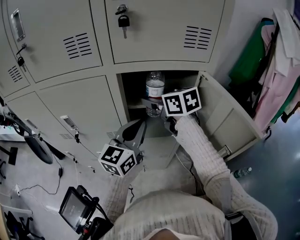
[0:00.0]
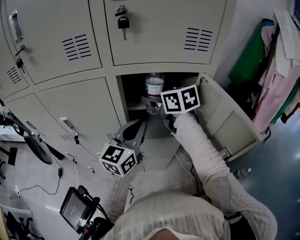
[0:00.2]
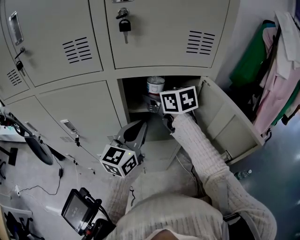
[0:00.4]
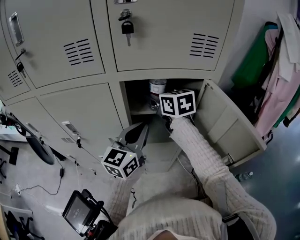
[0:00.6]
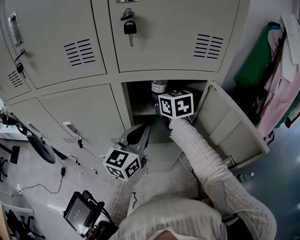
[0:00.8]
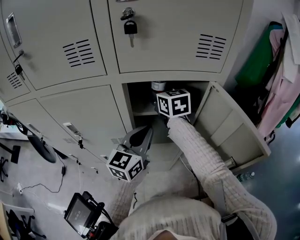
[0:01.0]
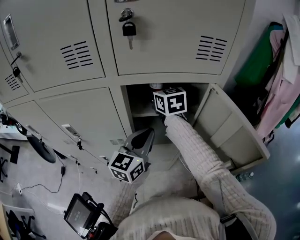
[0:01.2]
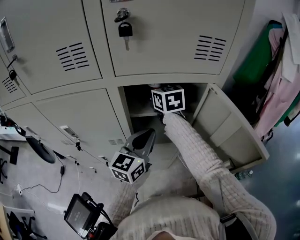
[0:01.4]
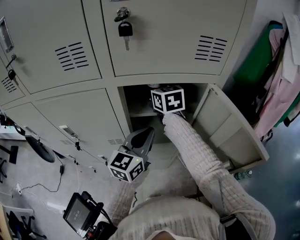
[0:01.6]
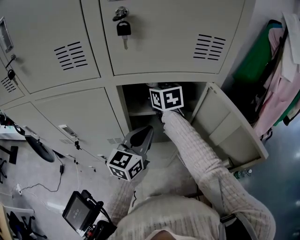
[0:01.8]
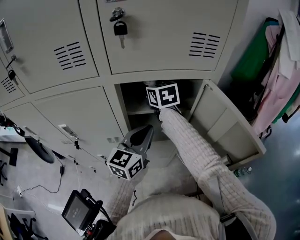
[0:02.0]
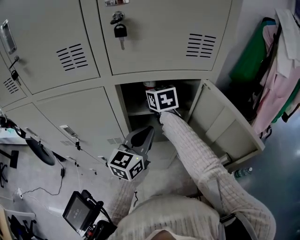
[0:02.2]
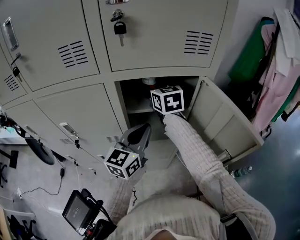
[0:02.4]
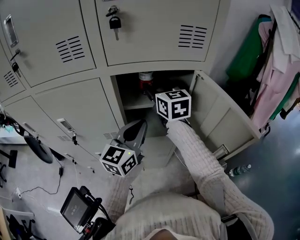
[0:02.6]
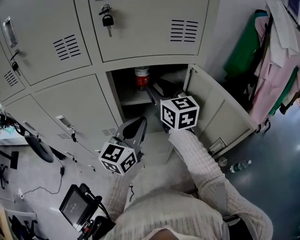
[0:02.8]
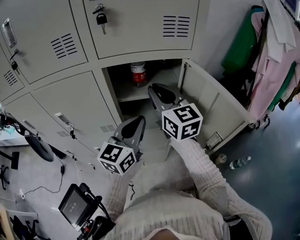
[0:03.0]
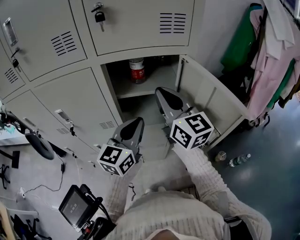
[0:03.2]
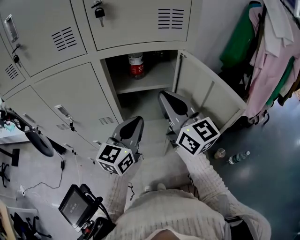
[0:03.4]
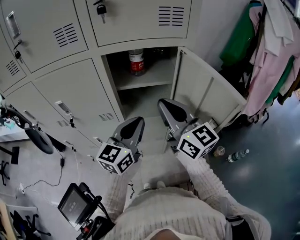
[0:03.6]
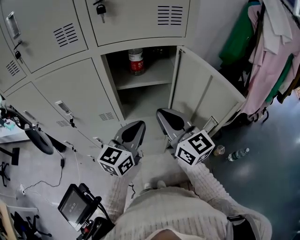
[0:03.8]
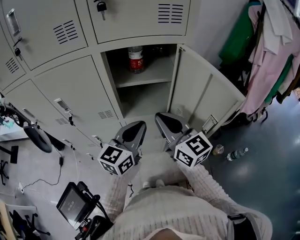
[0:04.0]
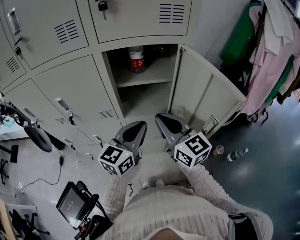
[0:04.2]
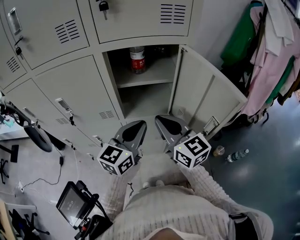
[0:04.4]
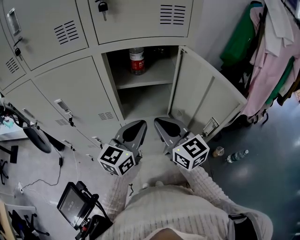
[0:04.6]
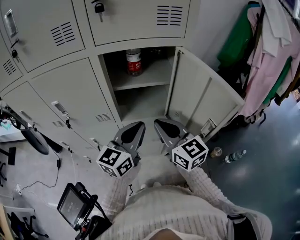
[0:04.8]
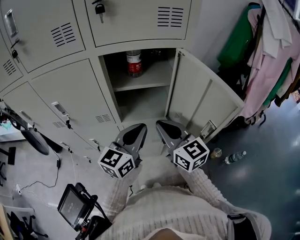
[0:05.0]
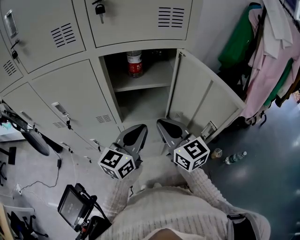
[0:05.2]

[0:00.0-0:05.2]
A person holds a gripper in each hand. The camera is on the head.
0:00.0 to 0:01.8: The right gripper moves forward, roughly 10 cm.
0:01.8 to 0:03.4: The left gripper travels backward by about 10 cm. Meanwhile the right gripper shifts some 30 cm backward and to the right, swivels roughly 30 degrees, and closes its fingers.
0:03.4 to 0:05.2: The right gripper is displaced downward by roughly 10 cm.

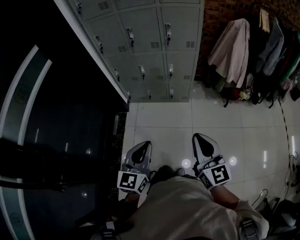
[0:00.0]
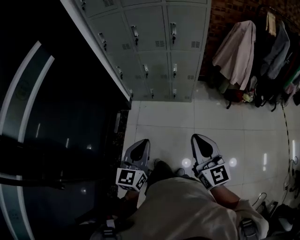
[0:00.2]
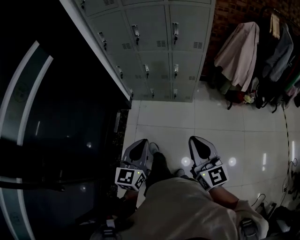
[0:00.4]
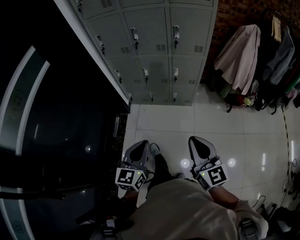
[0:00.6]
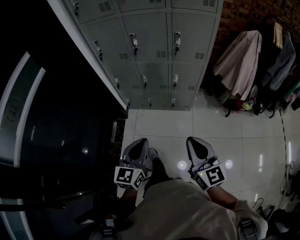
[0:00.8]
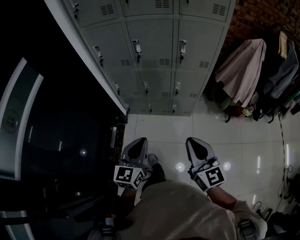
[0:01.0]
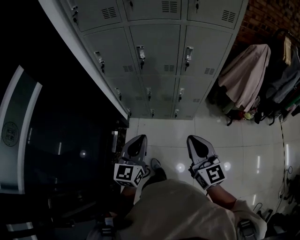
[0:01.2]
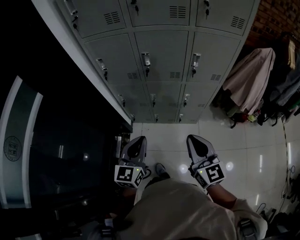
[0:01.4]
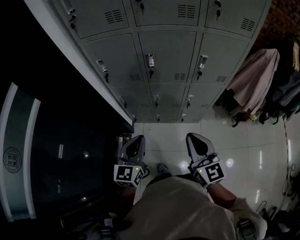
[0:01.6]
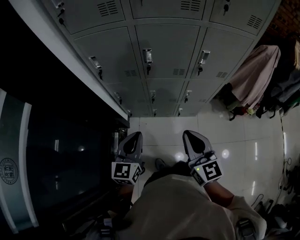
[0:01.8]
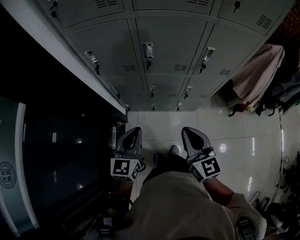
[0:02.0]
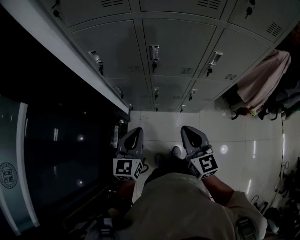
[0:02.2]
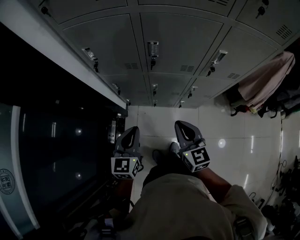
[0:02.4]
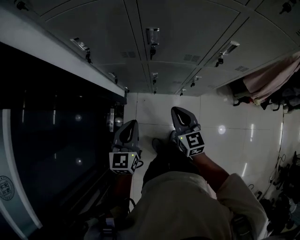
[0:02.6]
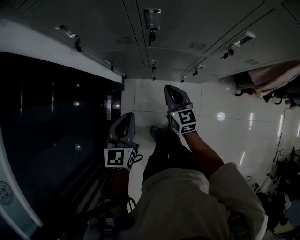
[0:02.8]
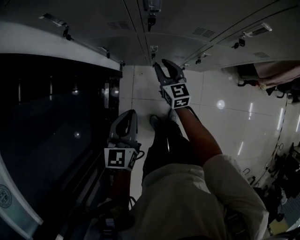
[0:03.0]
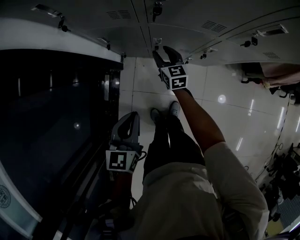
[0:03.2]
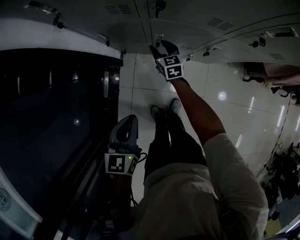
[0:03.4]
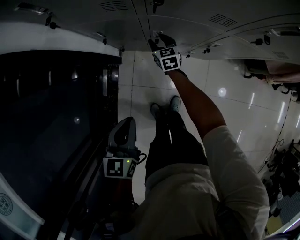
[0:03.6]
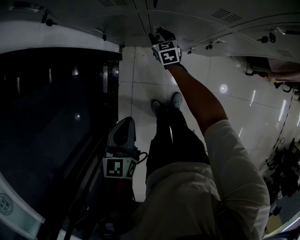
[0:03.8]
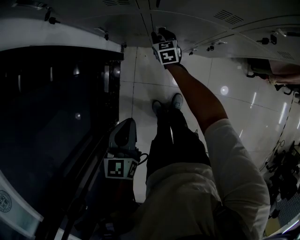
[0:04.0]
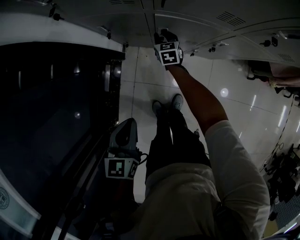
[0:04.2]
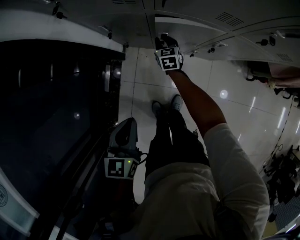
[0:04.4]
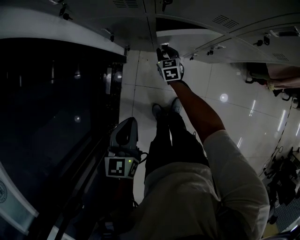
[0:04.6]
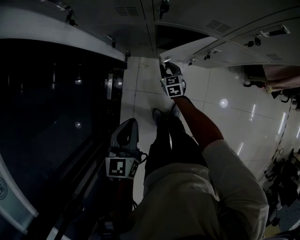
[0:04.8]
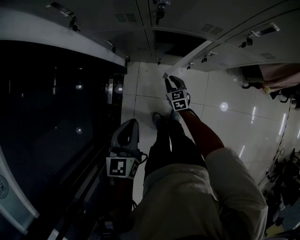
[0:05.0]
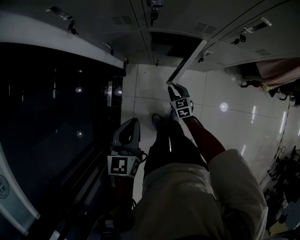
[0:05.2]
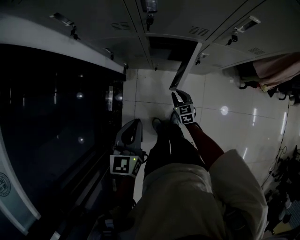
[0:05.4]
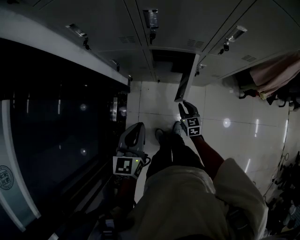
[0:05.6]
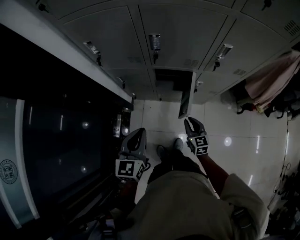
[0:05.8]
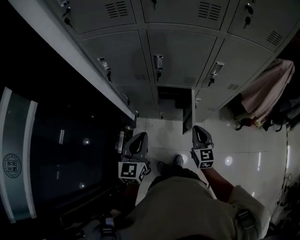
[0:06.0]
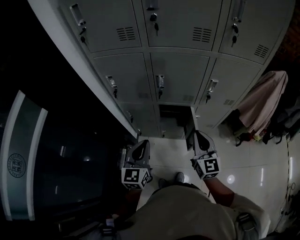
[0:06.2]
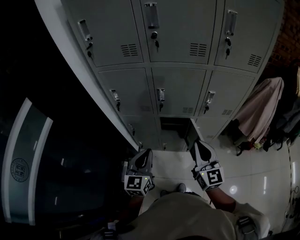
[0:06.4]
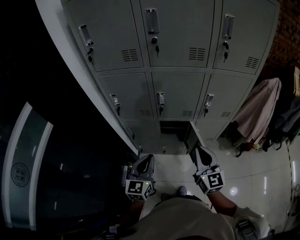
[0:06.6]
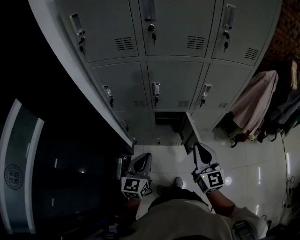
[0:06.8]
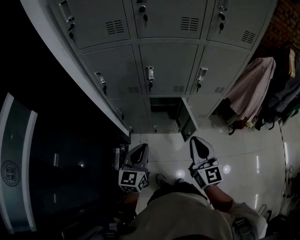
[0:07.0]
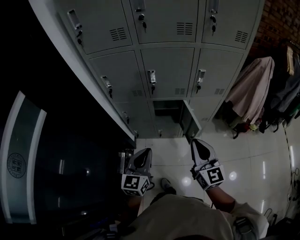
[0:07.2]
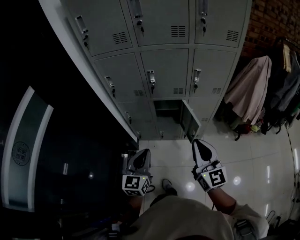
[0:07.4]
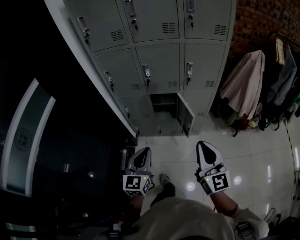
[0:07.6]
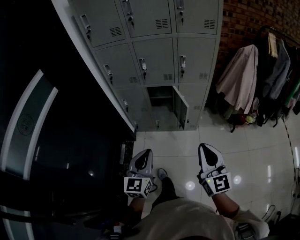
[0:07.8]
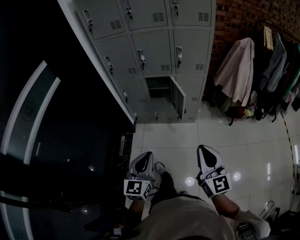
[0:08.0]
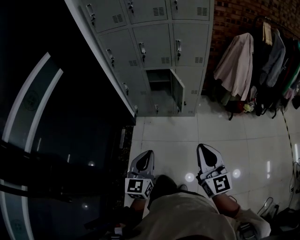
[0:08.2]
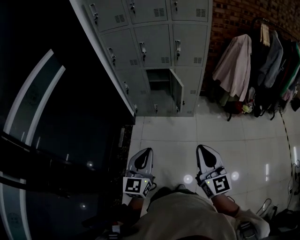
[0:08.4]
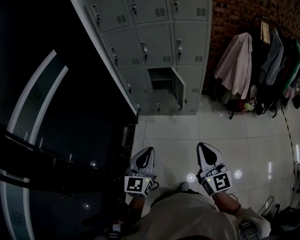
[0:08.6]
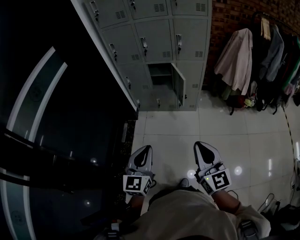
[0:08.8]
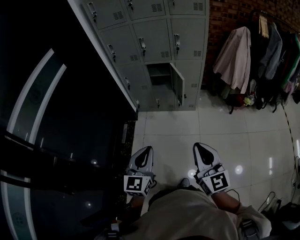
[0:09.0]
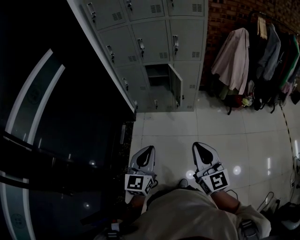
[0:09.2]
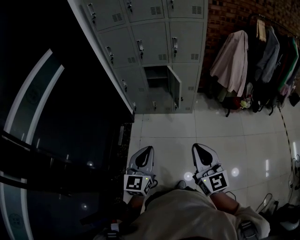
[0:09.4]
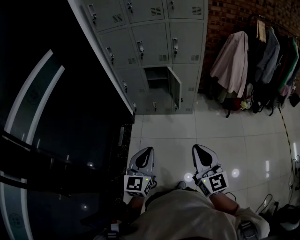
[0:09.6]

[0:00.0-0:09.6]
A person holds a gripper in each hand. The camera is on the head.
0:00.0 to 0:01.6: The two grippers travel together, forward and to the left, about 50 cm.
0:01.6 to 0:03.2: The right gripper is displaced downward and forward by approximately 70 cm, changes its angle by approximately 30 degrees, and opens up, while the left gripper goes some 35 cm downward, and changes its angle by some 30 degrees.
0:03.2 to 0:04.8: The right gripper shifts roughly 15 cm downward and backward, and closes.
0:04.8 to 0:06.4: The right gripper is displaced upward by about 70 cm, and points its fingers some 40 degrees further upward. The left gripper shifts some 30 cm upward, and rotates approximately 30 degrees.
0:06.4 to 0:08.0: The pair of grippers is taken backward, about 50 cm.
0:08.0 to 0:09.6: The two grippers go approximately 10 cm backward.

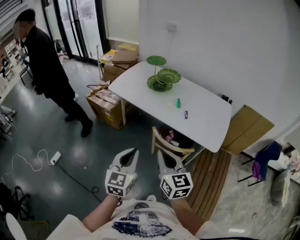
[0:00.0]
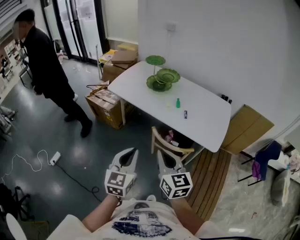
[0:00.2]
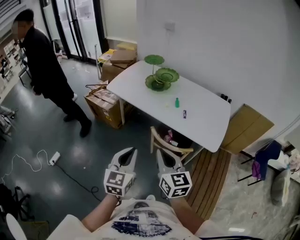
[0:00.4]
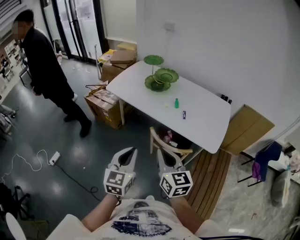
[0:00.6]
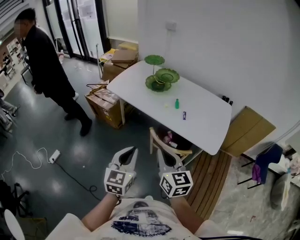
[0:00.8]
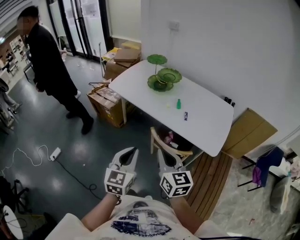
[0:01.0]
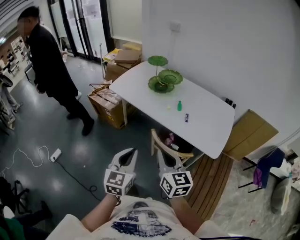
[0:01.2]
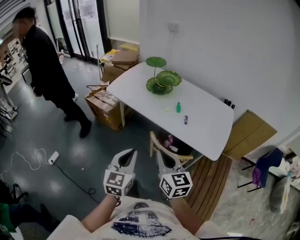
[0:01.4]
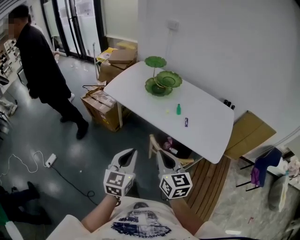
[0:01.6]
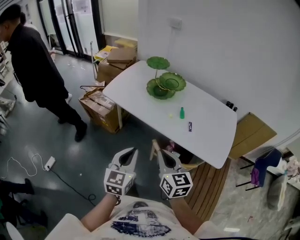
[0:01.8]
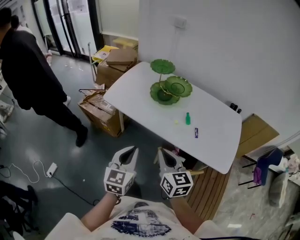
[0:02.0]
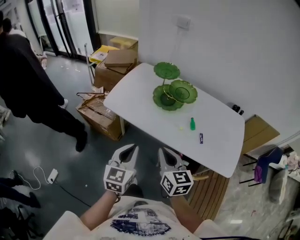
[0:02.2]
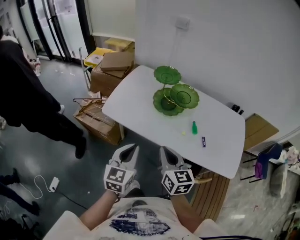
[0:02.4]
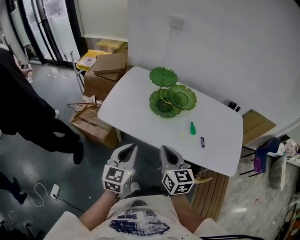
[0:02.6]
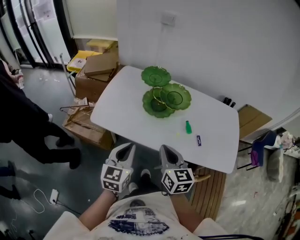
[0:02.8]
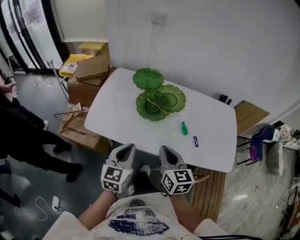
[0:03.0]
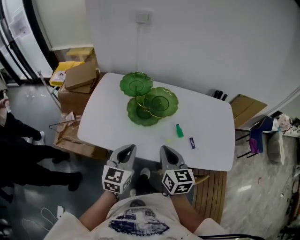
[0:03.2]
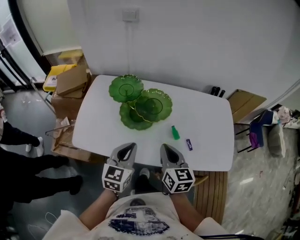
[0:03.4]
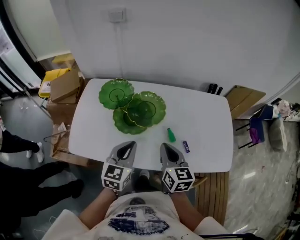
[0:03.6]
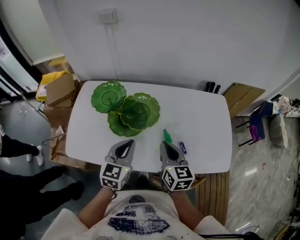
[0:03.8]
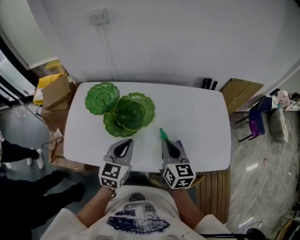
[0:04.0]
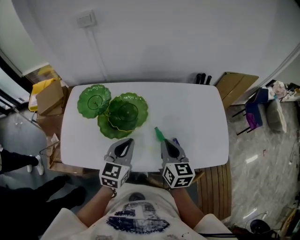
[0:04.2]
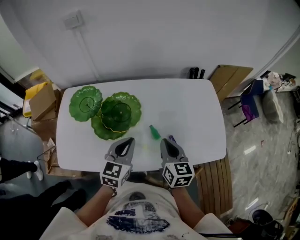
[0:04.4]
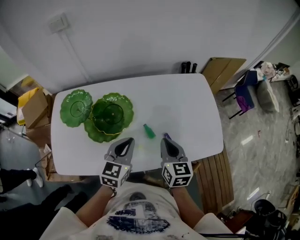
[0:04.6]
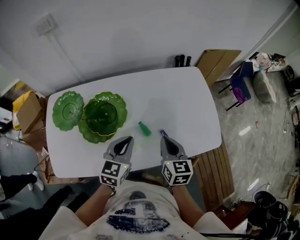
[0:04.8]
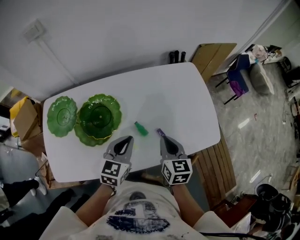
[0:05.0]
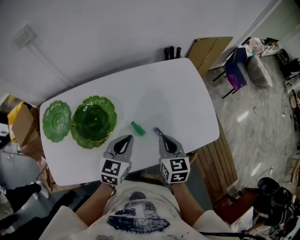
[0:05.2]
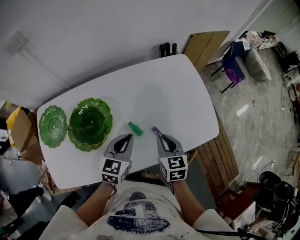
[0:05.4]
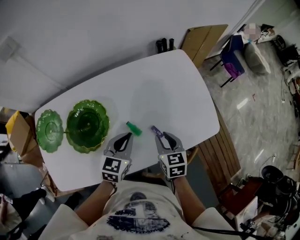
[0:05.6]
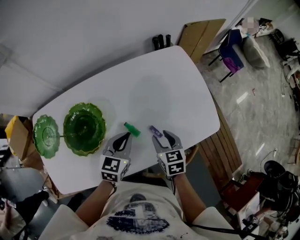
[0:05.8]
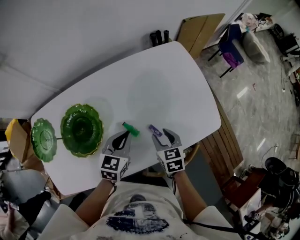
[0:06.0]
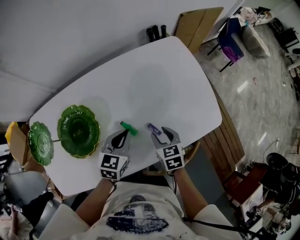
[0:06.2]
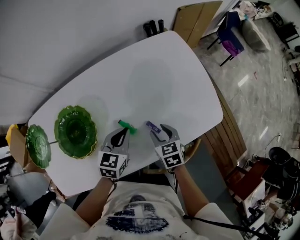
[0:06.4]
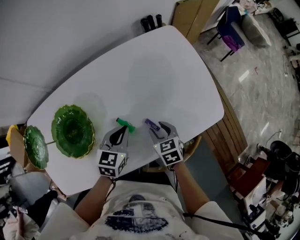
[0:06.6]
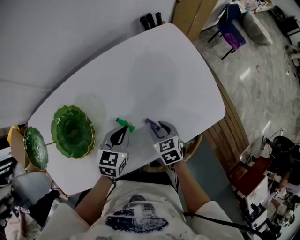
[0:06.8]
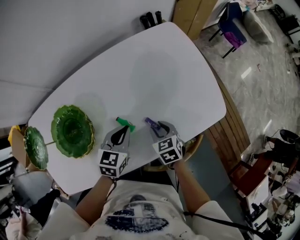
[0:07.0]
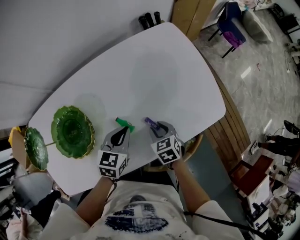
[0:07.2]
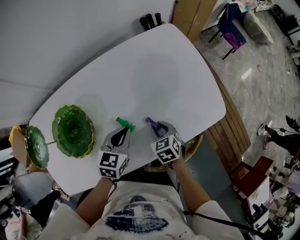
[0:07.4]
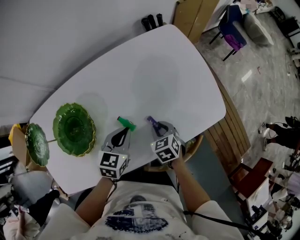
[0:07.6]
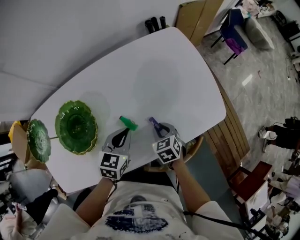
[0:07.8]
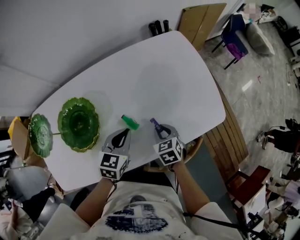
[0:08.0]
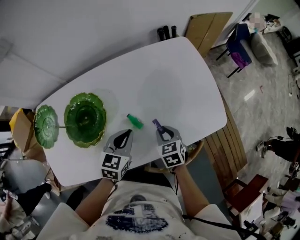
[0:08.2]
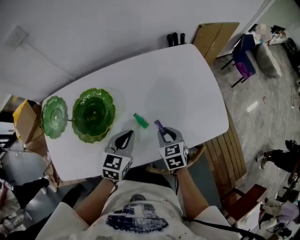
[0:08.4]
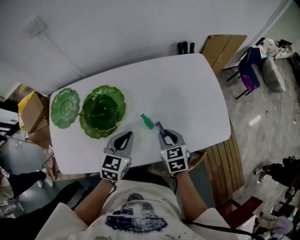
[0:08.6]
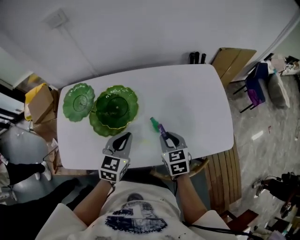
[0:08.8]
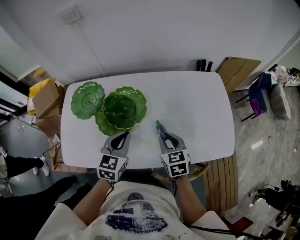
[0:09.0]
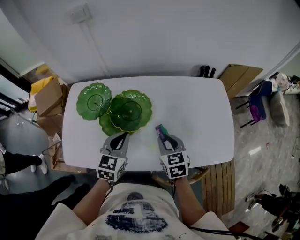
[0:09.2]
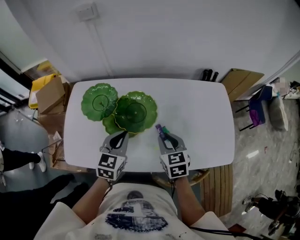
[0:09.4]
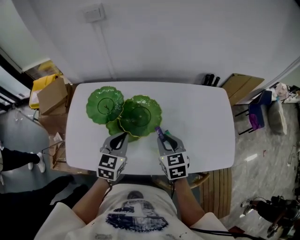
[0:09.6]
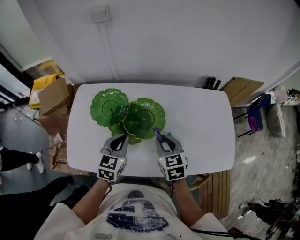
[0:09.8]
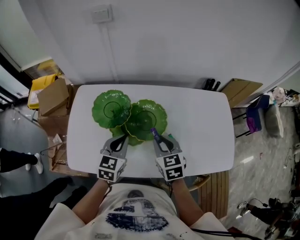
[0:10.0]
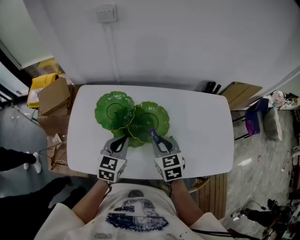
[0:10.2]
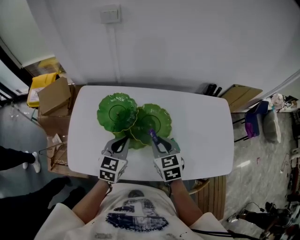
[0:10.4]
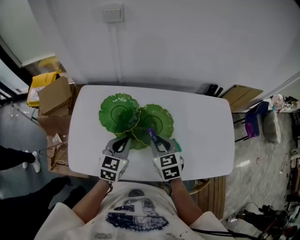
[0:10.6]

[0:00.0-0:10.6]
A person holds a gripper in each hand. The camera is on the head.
0:00.0 to 0:01.6: The two grippers go some 10 cm forward.
0:01.6 to 0:03.0: Both grippers travel together forward, roughly 35 cm. The right gripper turns by some 20 degrees; the left gripper turns by roughly 20 degrees.
0:03.0 to 0:04.6: The right gripper ends up approximately 25 cm from where it was, and swivels roughly 30 degrees; the left gripper shifts by some 30 cm, and changes its angle by about 30 degrees.
0:04.6 to 0:06.0: The left gripper heads downward, forward and to the right, covering some 15 cm. Meanwhile the right gripper heads downward and to the right, covering approximately 15 cm, turns by about 20 degrees, and opens.
0:06.0 to 0:07.6: The right gripper is displaced downward by some 5 cm, and closes.
0:07.6 to 0:09.0: The right gripper goes roughly 20 cm upward and to the left, and rotates about 20 degrees; the left gripper goes roughly 20 cm to the left, upward and backward, and turns by roughly 30 degrees.
0:09.0 to 0:10.6: The right gripper shifts roughly 20 cm to the left and forward. The left gripper heads to the left, covering some 15 cm.
